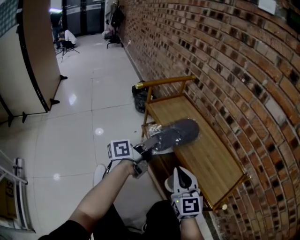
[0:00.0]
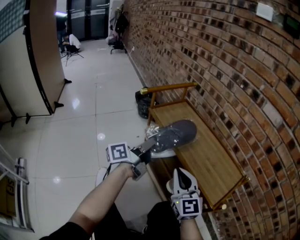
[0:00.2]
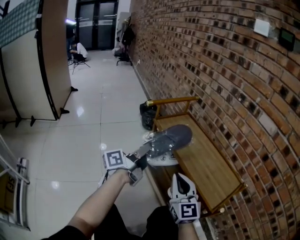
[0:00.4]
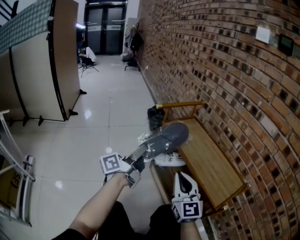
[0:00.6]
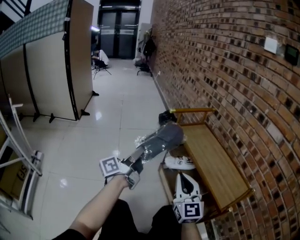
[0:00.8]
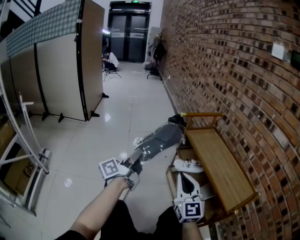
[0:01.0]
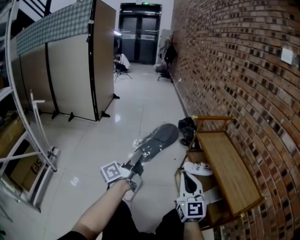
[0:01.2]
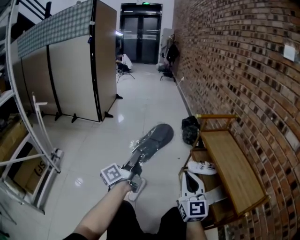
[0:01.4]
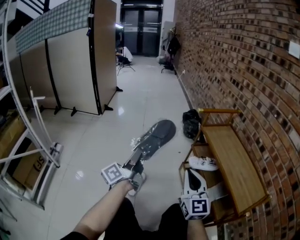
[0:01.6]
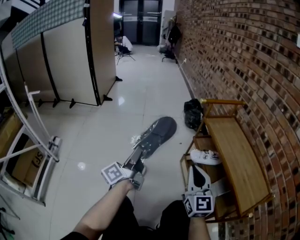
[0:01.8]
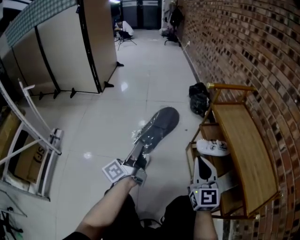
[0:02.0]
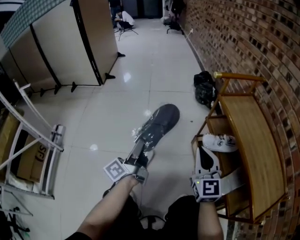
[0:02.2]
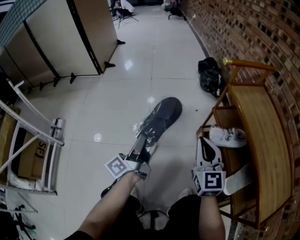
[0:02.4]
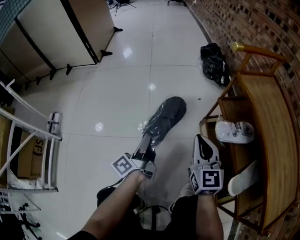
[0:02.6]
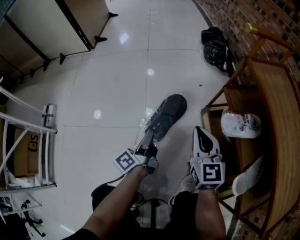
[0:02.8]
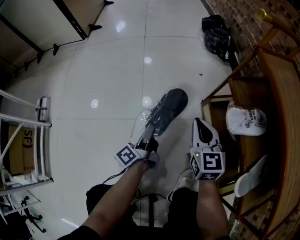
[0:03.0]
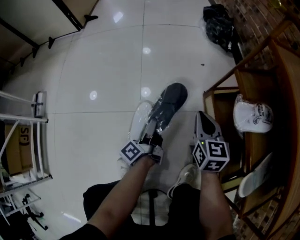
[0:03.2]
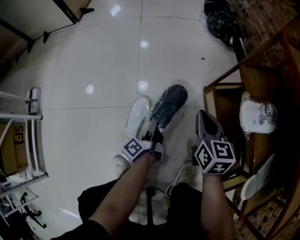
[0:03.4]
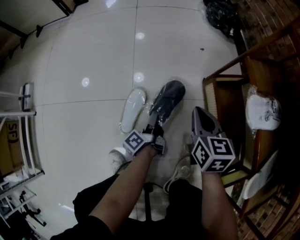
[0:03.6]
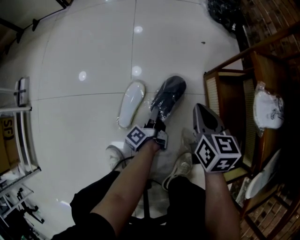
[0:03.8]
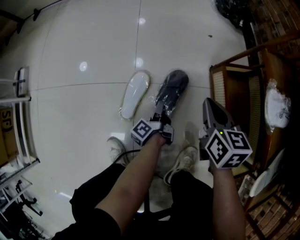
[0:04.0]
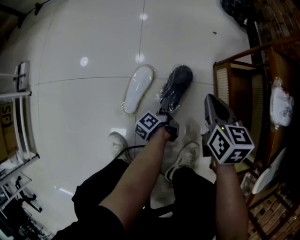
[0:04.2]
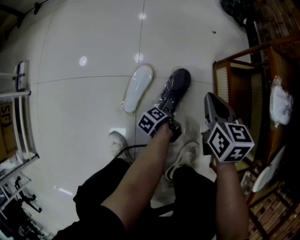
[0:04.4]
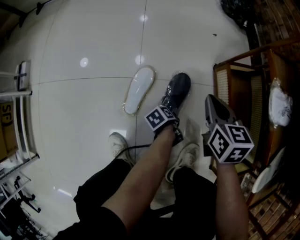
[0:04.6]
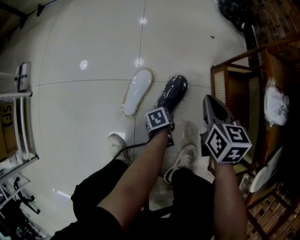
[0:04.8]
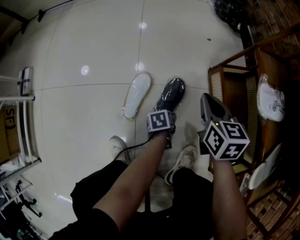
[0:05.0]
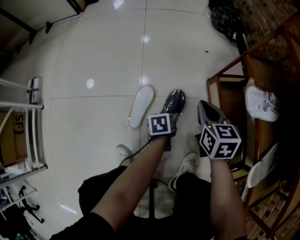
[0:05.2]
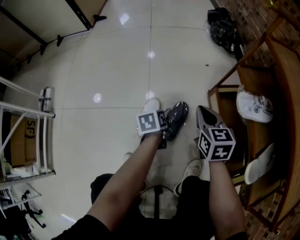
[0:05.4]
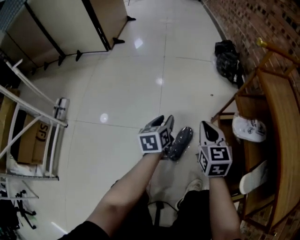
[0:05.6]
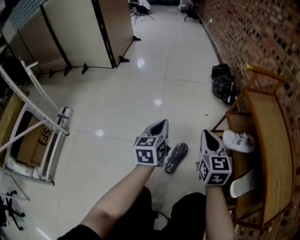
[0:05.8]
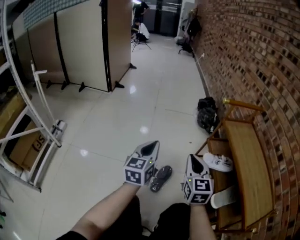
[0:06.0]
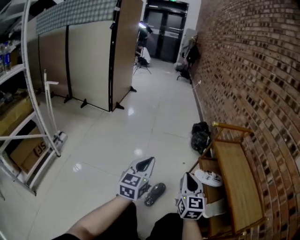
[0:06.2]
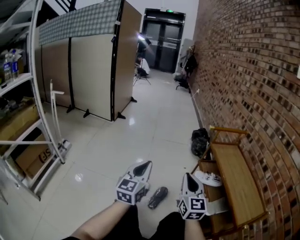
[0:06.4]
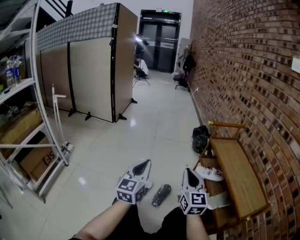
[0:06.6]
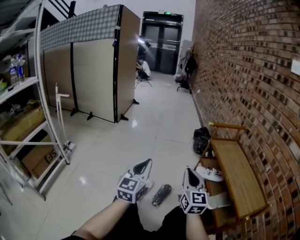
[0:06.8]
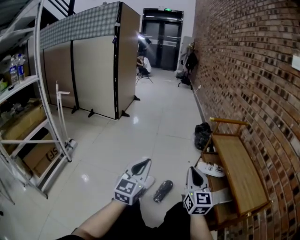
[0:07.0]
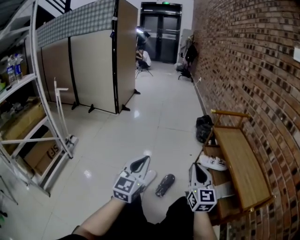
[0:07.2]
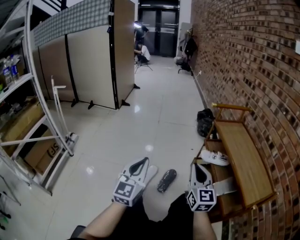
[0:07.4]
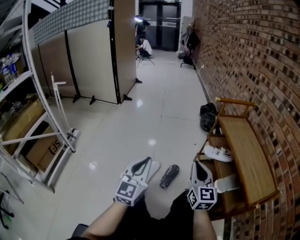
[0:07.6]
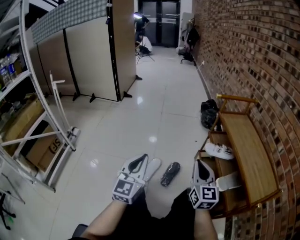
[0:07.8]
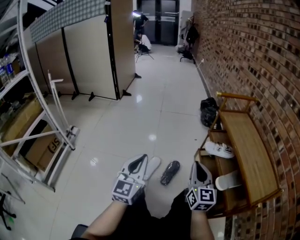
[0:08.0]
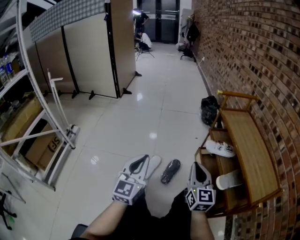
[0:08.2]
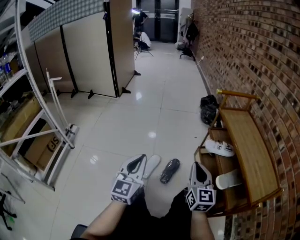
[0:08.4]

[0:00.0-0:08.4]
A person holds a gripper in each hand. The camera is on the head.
0:00.0 to 0:01.4: The left gripper moves approximately 40 cm, and rotates about 50 degrees. Meanwhile the right gripper ends up about 20 cm from where it was, and changes its angle by roughly 20 degrees.
0:01.4 to 0:02.8: The left gripper goes some 35 cm downward, and changes its angle by about 20 degrees; the right gripper heads downward and forward, covering some 35 cm, and swivels approximately 20 degrees.
0:02.8 to 0:04.2: The left gripper moves downward, about 30 cm, and points its fingers some 30 degrees further downward, while the right gripper heads downward, covering roughly 20 cm, and rotates some 30 degrees.
0:04.2 to 0:05.6: The left gripper shifts about 30 cm upward, twists approximately 70 degrees clockwise, seen from behind, and opens, then closes again; the right gripper moves upward, roughly 15 cm, and changes its angle by some 20 degrees.
0:05.6 to 0:07.0: Both grippers move upward and backward, about 40 cm. The right gripper rotates roughly 30 degrees, while the left gripper angles its fingers upward, by some 40 degrees, and closes up.
0:07.0 to 0:08.4: Both grippers travel together downward, roughly 10 cm.

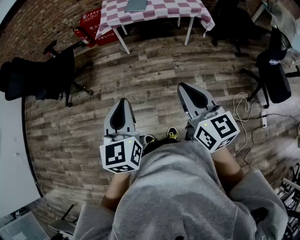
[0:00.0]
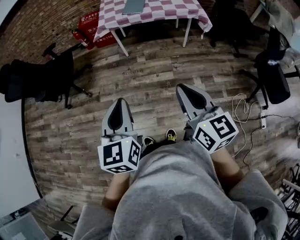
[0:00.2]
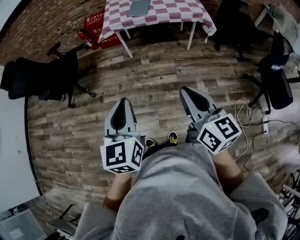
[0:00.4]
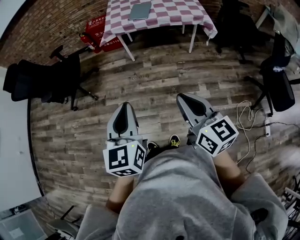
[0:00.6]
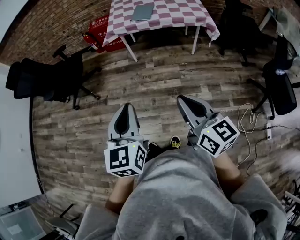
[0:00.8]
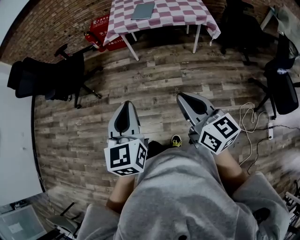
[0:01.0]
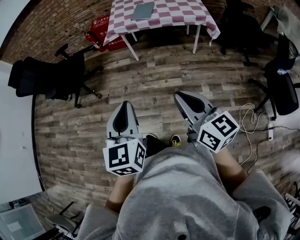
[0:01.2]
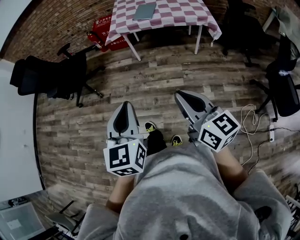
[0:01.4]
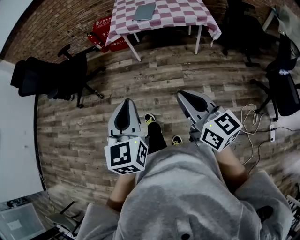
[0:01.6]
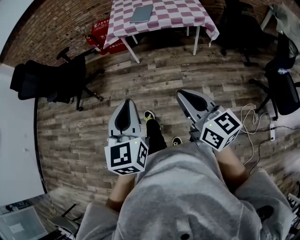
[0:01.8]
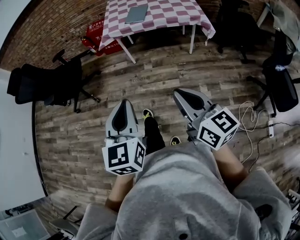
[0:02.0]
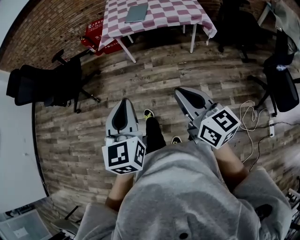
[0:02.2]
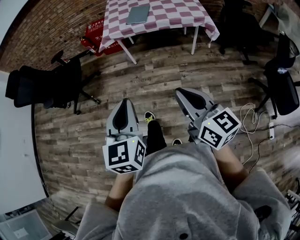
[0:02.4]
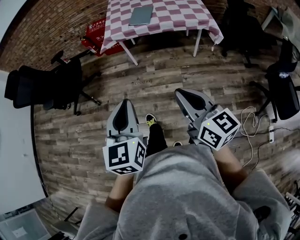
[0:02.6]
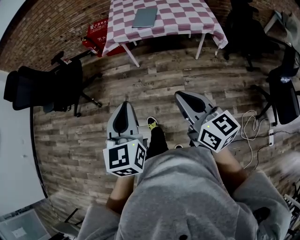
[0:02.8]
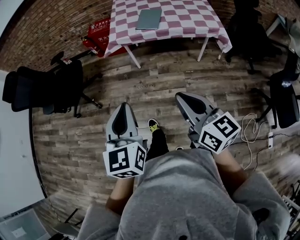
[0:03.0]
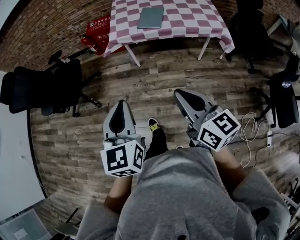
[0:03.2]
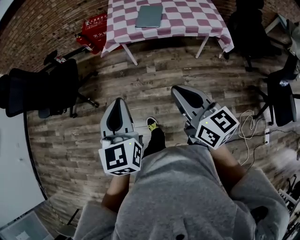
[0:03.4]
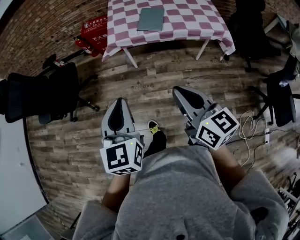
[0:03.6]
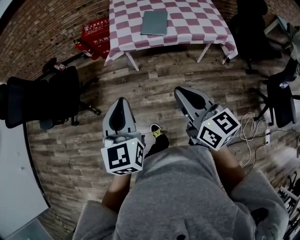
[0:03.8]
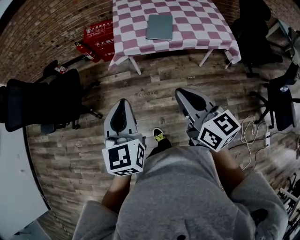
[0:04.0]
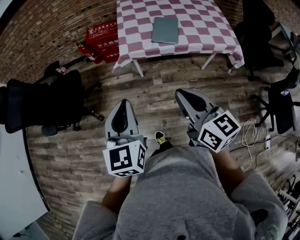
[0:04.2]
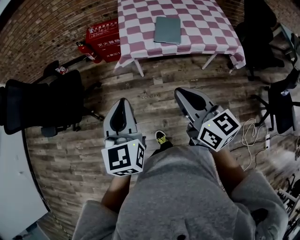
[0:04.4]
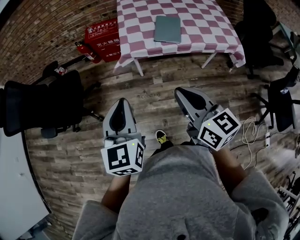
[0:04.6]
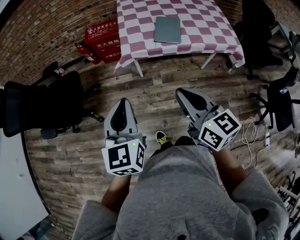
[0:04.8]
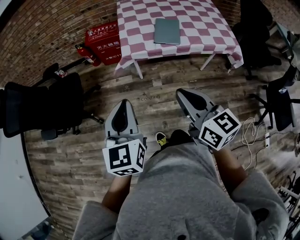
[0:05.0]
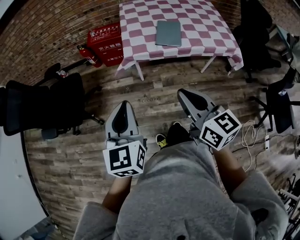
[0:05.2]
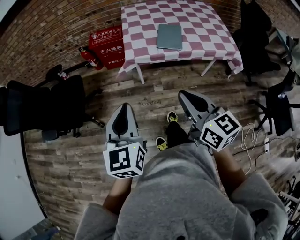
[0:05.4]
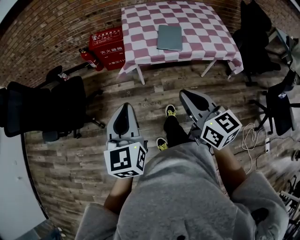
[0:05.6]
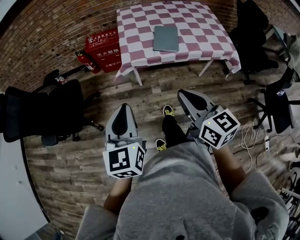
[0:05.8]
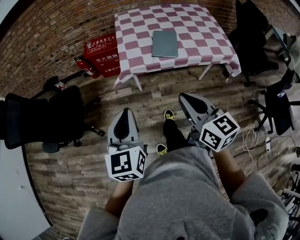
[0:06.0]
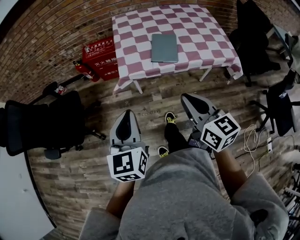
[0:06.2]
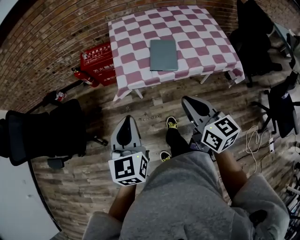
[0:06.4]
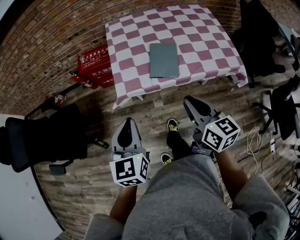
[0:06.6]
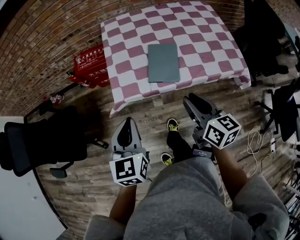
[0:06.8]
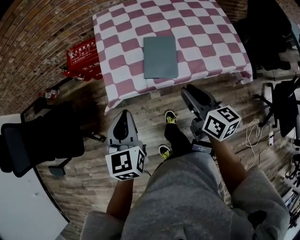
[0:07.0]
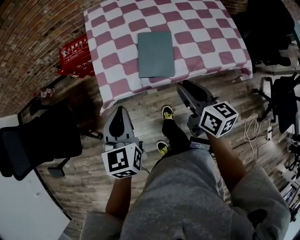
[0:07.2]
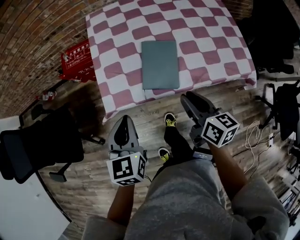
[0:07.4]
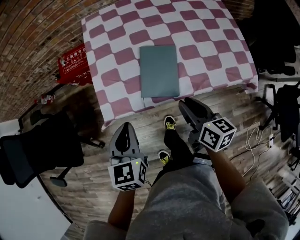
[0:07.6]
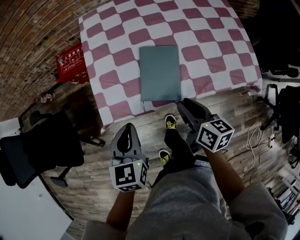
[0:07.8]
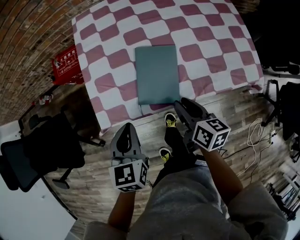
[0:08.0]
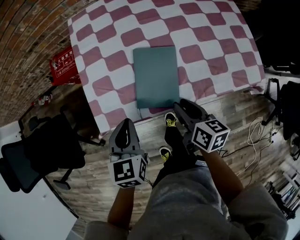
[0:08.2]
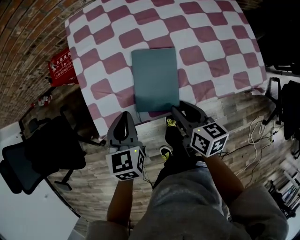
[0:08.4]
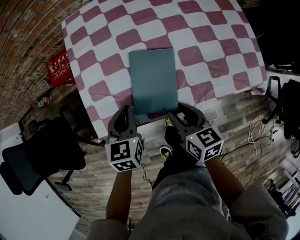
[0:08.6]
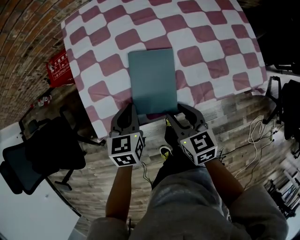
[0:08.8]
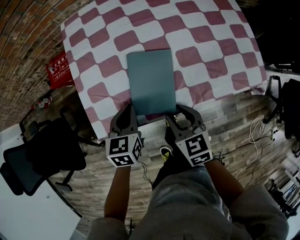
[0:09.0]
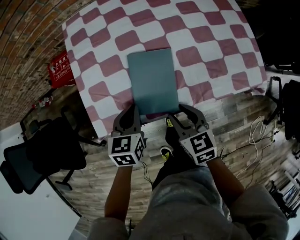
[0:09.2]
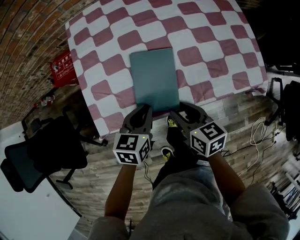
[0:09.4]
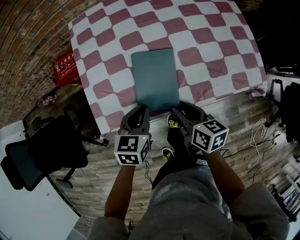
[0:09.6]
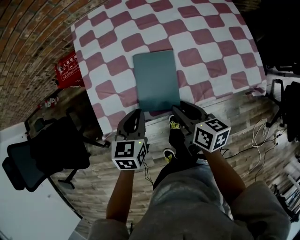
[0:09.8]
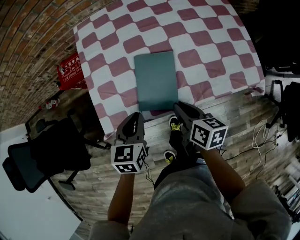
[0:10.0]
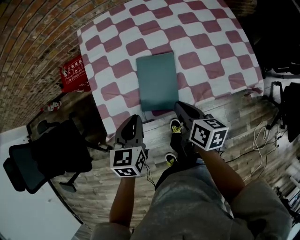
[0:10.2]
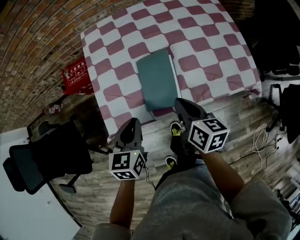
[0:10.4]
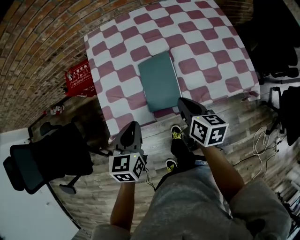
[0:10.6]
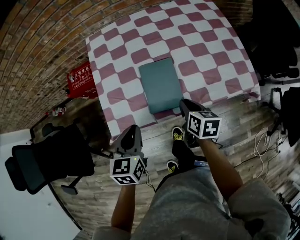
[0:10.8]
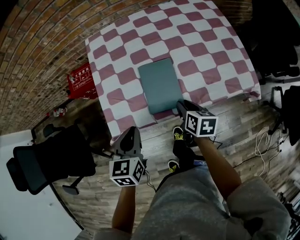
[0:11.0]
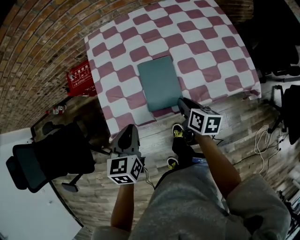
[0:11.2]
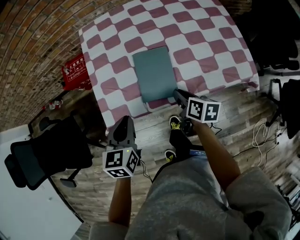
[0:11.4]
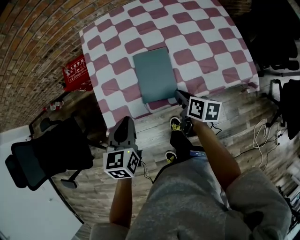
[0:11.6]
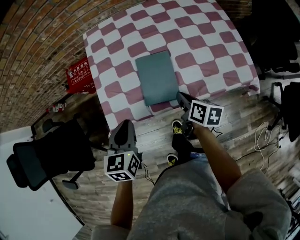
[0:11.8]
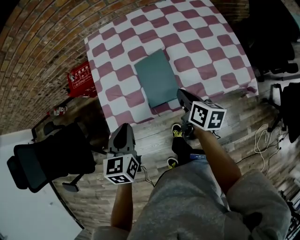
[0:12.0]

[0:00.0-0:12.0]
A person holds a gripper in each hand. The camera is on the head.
0:00.0 to 0:01.6: The left gripper heads to the right, covering about 5 cm.
0:01.6 to 0:03.0: Both grippers travel together forward, about 20 cm.
0:03.0 to 0:04.4: The grippers both shift forward and to the left by some 25 cm.
0:04.4 to 0:06.0: The grippers stay close to where they were, moving slightly.
0:06.0 to 0:07.6: Both grippers move forward, downward and to the right, roughly 30 cm. The right gripper turns by about 30 degrees, while the left gripper swivels roughly 20 degrees.
0:07.6 to 0:09.0: The left gripper is displaced downward, forward and to the right by about 15 cm; the right gripper heads downward, covering about 5 cm, and rotates roughly 30 degrees.
0:09.0 to 0:10.4: The right gripper goes about 10 cm upward, rotates roughly 30 degrees, and closes up. Meanwhile the left gripper shifts roughly 10 cm upward and backward.
0:10.4 to 0:12.0: The right gripper goes downward and returns, about 10 cm each way, and opens, then closes once more.

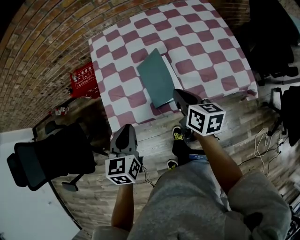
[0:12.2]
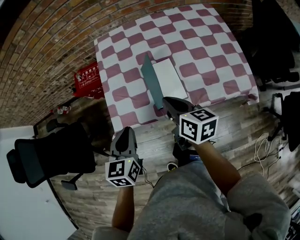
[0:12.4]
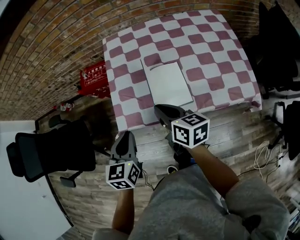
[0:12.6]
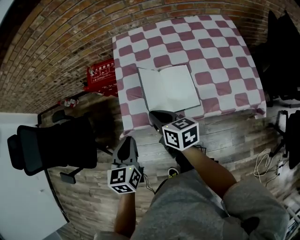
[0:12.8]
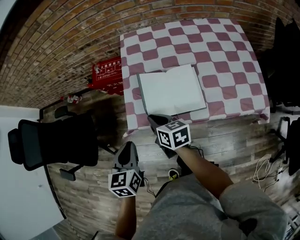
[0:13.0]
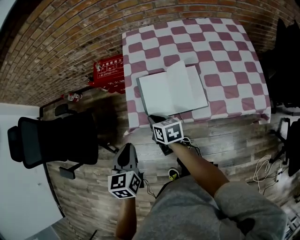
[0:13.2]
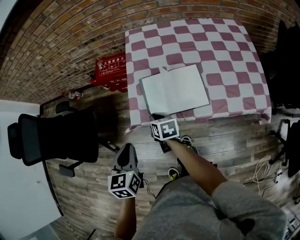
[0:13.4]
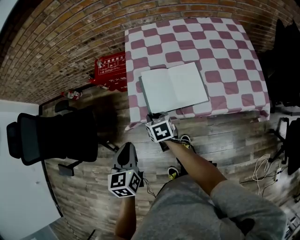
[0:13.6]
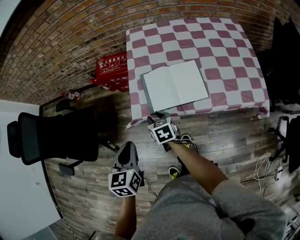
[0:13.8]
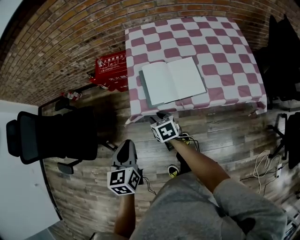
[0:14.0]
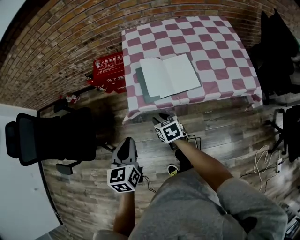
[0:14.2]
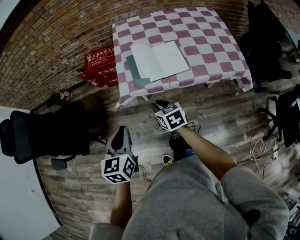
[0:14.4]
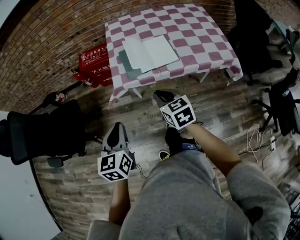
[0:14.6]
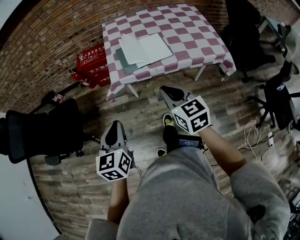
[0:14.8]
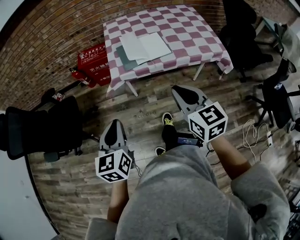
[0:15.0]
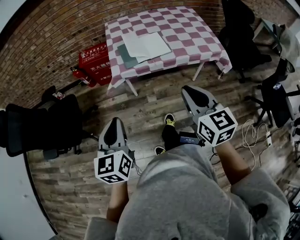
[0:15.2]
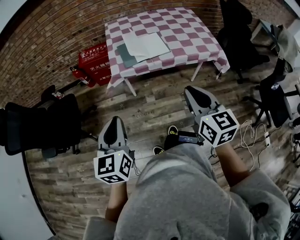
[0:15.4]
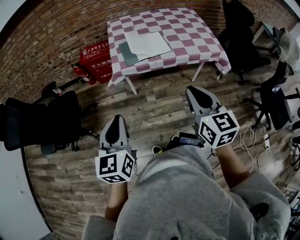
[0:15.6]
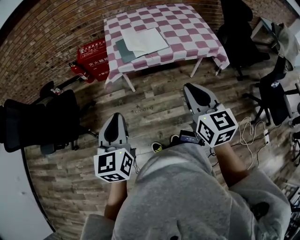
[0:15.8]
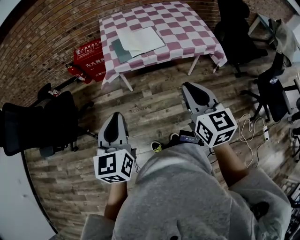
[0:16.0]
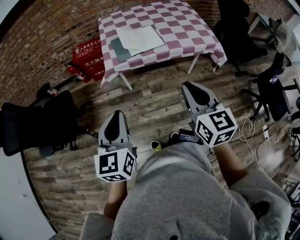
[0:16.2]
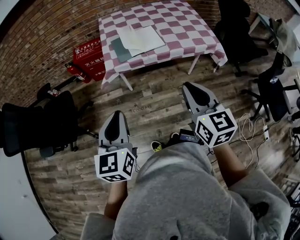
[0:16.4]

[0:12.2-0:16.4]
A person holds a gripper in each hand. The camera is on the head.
0:12.2 to 0:13.6: The left gripper heads to the left and backward, covering about 15 cm, while the right gripper travels to the left by roughly 25 cm, and swivels roughly 30 degrees.
0:13.6 to 0:15.0: The left gripper travels backward by roughly 20 cm, while the right gripper heads backward and upward, covering roughly 40 cm, and rotates roughly 30 degrees.
0:15.0 to 0:16.4: The left gripper changes place by roughly 5 cm. Meanwhile the right gripper shifts about 5 cm backward.
